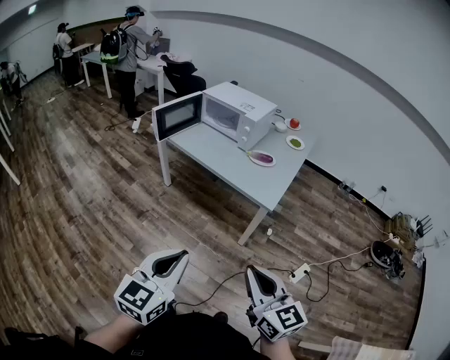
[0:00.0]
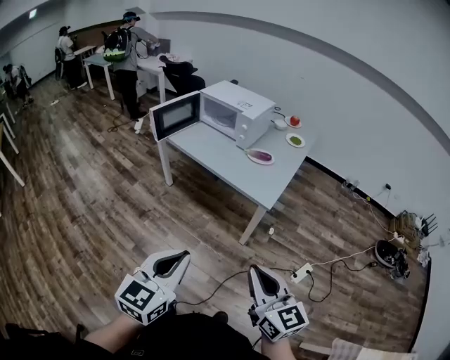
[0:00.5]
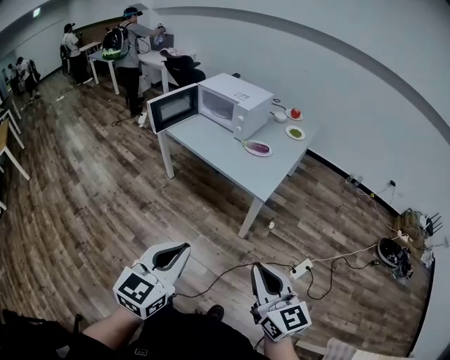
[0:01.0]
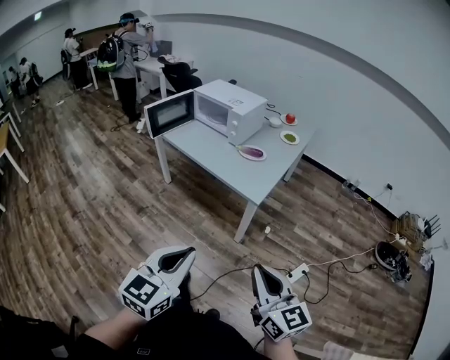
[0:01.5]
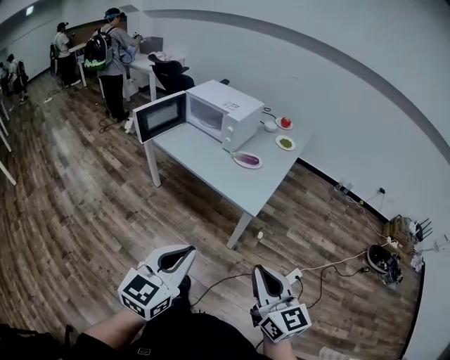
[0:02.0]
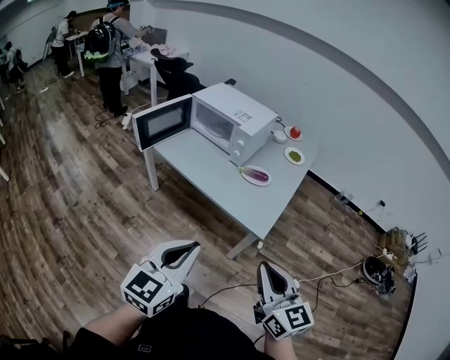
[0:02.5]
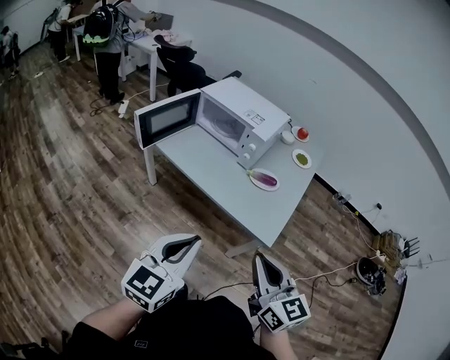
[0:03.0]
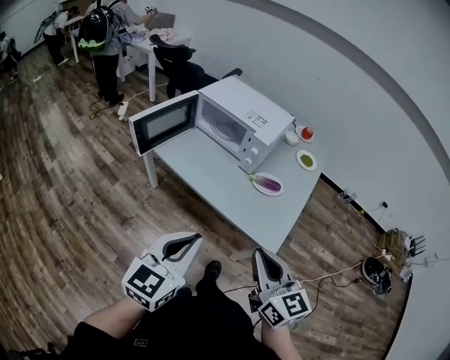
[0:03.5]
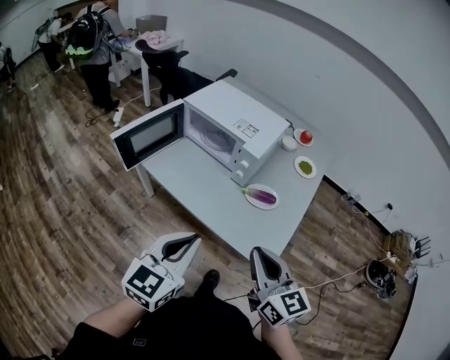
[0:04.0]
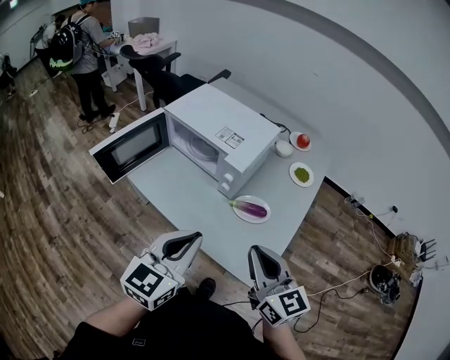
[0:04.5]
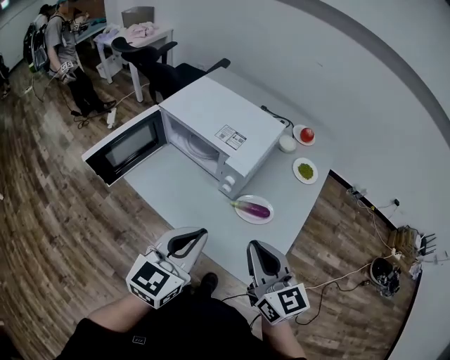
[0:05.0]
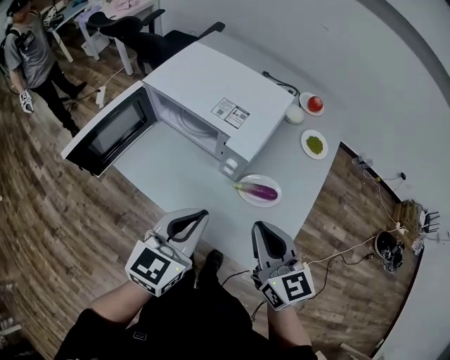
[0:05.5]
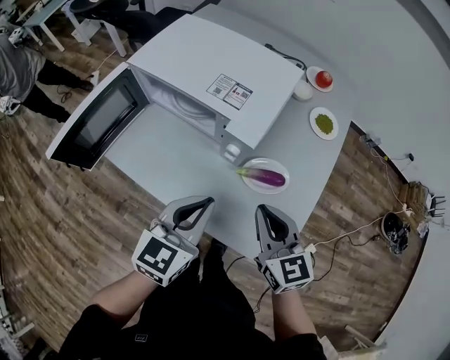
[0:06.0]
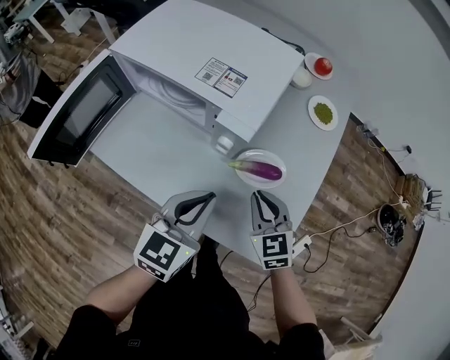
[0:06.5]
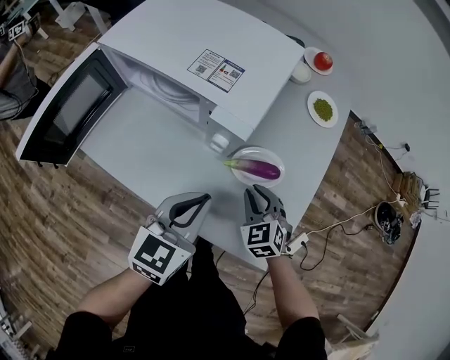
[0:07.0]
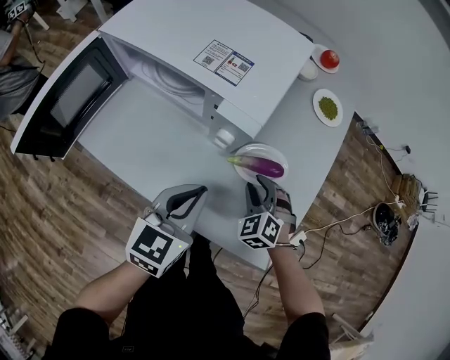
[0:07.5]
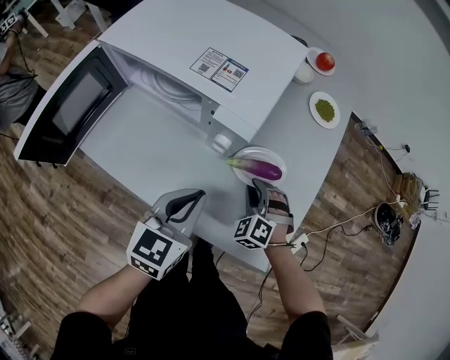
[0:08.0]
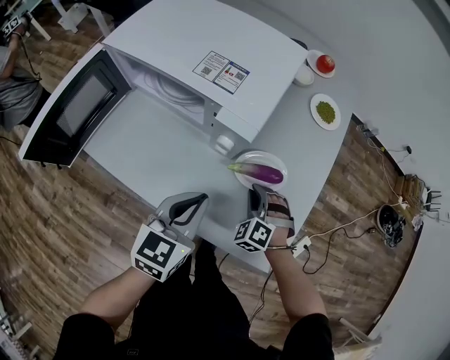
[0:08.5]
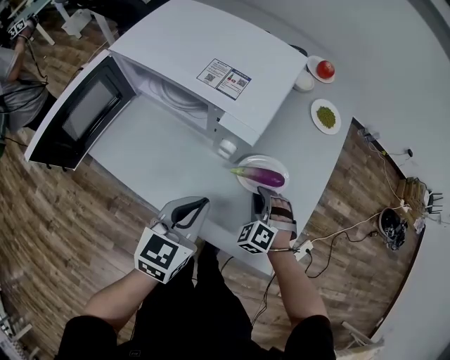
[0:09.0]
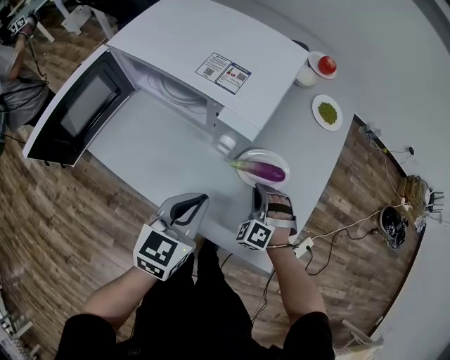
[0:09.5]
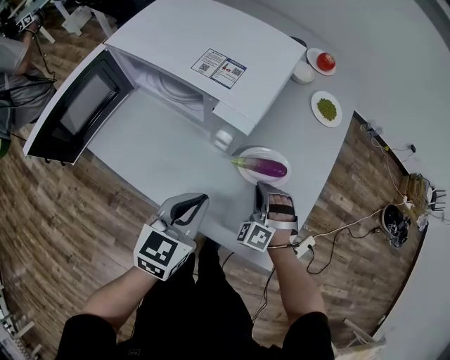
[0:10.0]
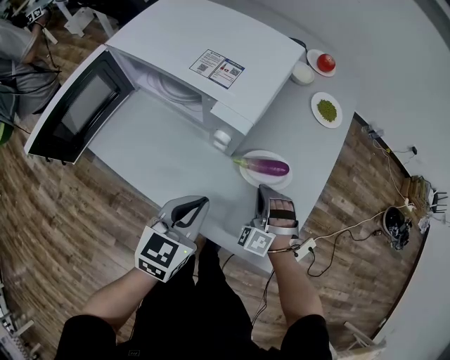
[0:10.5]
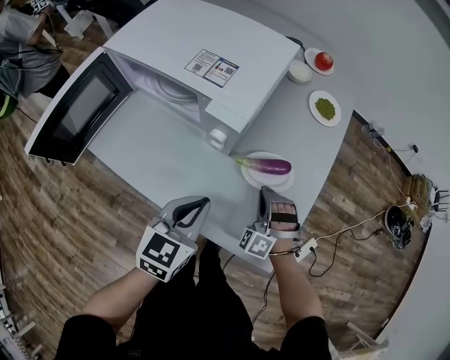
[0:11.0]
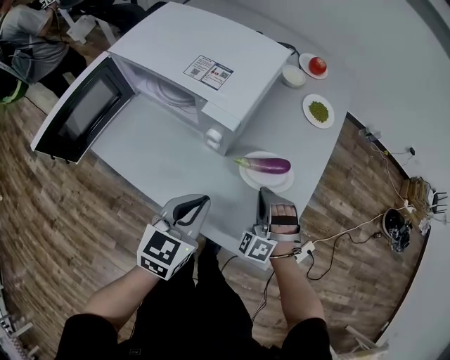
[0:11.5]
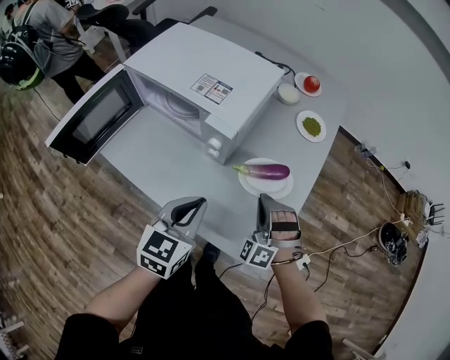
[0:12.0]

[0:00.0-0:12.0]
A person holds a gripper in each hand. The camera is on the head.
0:00.0 to 0:02.0: Both grippers move to the right and forward, approximately 15 cm.
0:02.0 to 0:04.0: Both grippers move forward, about 35 cm.
0:04.0 to 0:06.0: The two grippers go about 25 cm forward and downward.
0:06.0 to 0:08.0: The left gripper moves downward, about 10 cm, while the right gripper is displaced downward by approximately 20 cm, and rotates around the line of its fingers by approximately 50 degrees, counterclockwise from behind.
0:08.0 to 0:10.0: The grippers make only small movements.
0:10.0 to 0:12.0: The right gripper travels upward by about 10 cm. The left gripper goes some 5 cm upward.

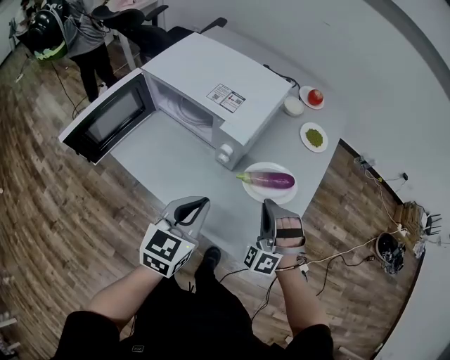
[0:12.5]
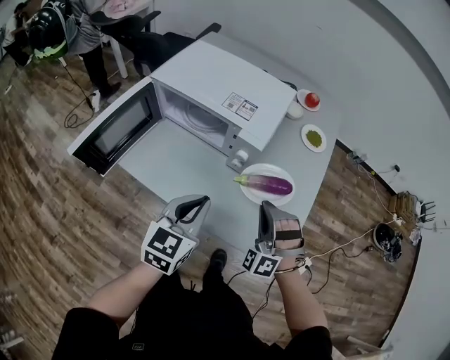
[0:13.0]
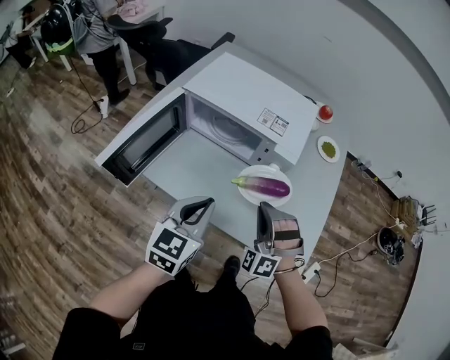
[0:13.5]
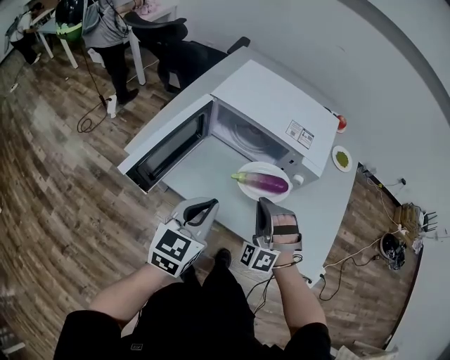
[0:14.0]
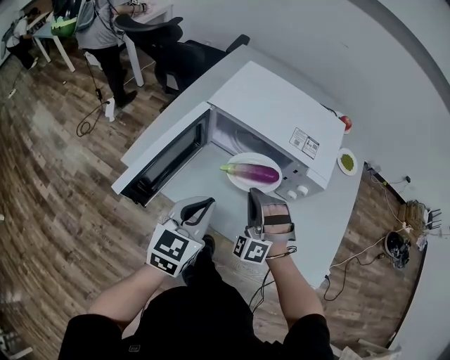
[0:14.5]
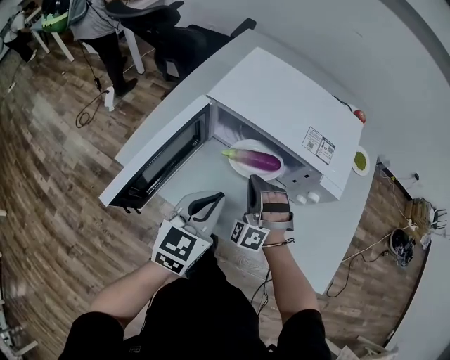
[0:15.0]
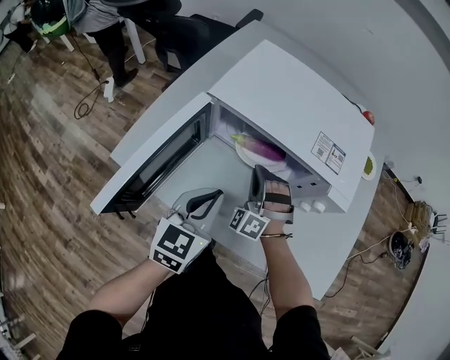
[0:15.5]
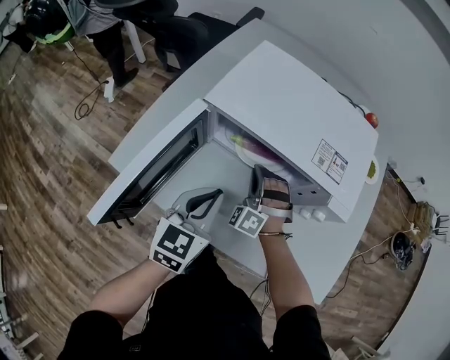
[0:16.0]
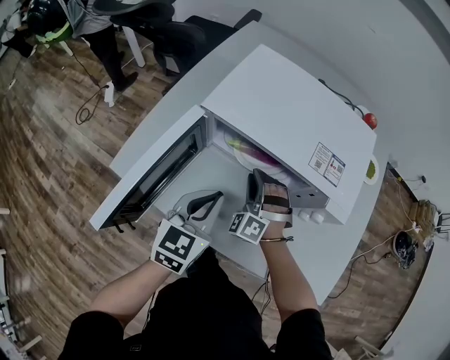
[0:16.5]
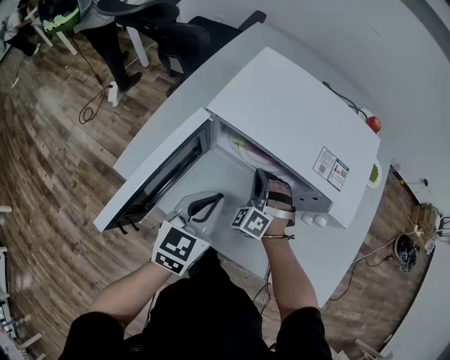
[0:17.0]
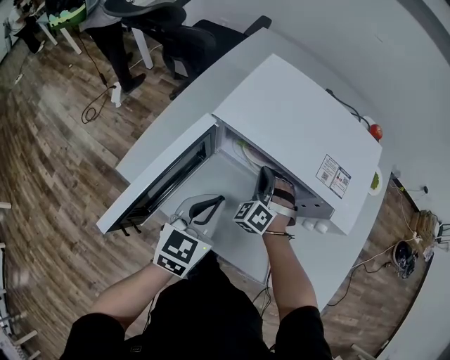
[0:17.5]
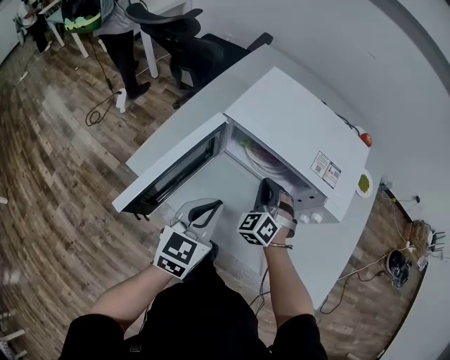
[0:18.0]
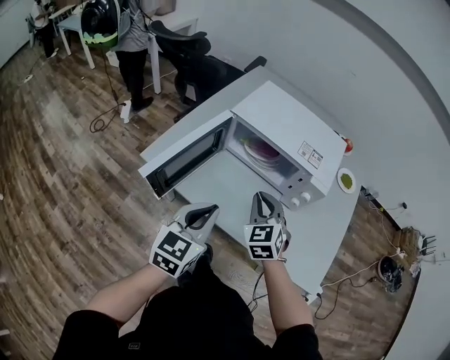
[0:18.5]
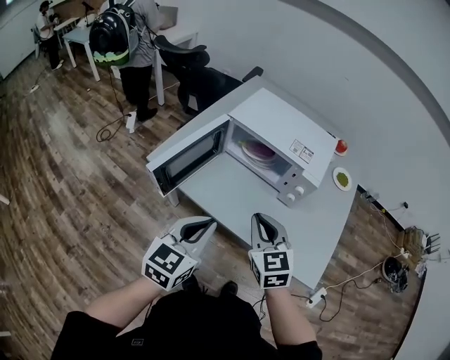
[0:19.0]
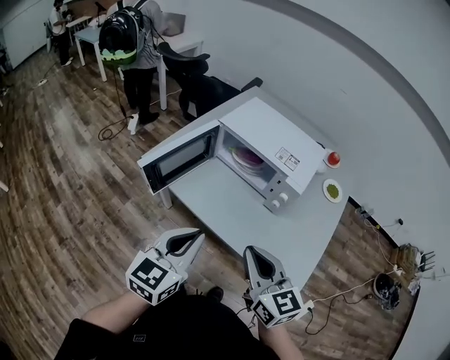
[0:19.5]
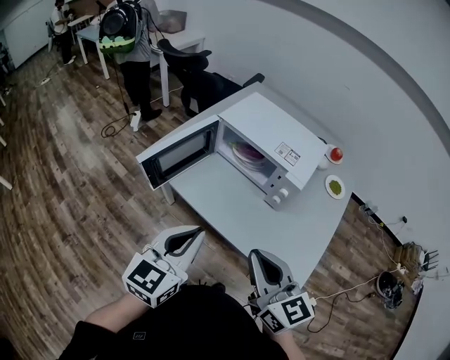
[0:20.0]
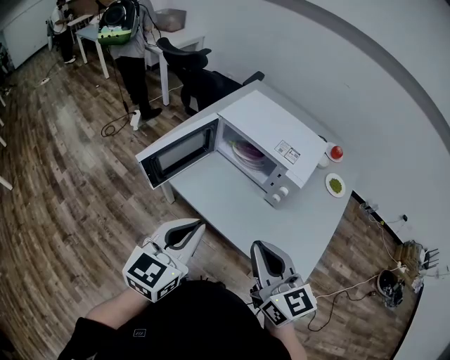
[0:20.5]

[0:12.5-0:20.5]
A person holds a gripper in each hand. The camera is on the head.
0:12.5 to 0:14.5: Both grippers travel together to the left, some 30 cm.
0:14.5 to 0:16.5: Both grippers move forward and downward, about 15 cm. The right gripper opens.
0:16.5 to 0:18.5: Both grippers move backward and upward, some 20 cm. The right gripper changes its angle by some 40 degrees, and closes its fingers.
0:18.5 to 0:20.5: The right gripper heads backward and upward, covering about 25 cm, and rotates approximately 50 degrees. Meanwhile the left gripper heads backward, upward and to the right, covering approximately 15 cm.

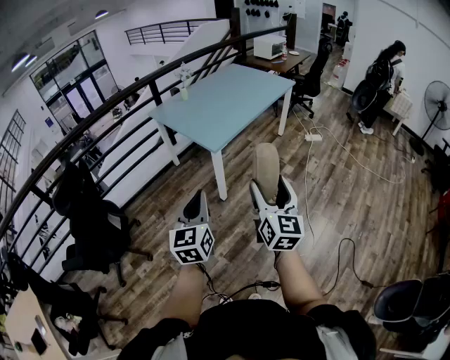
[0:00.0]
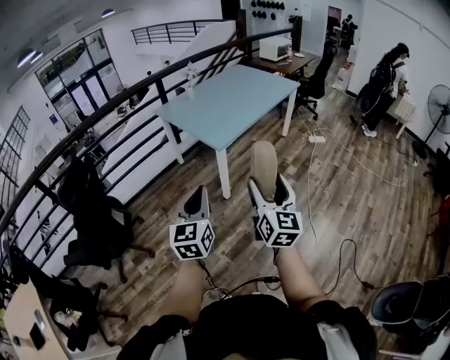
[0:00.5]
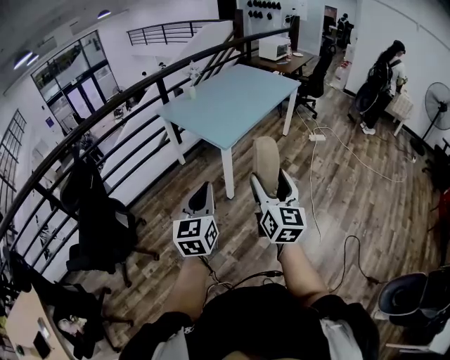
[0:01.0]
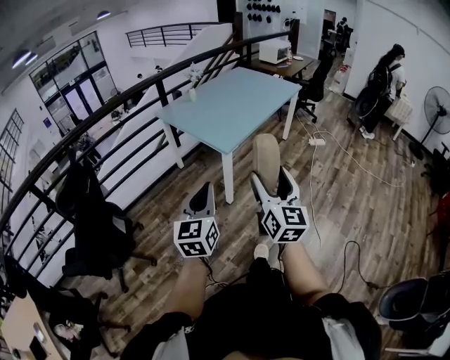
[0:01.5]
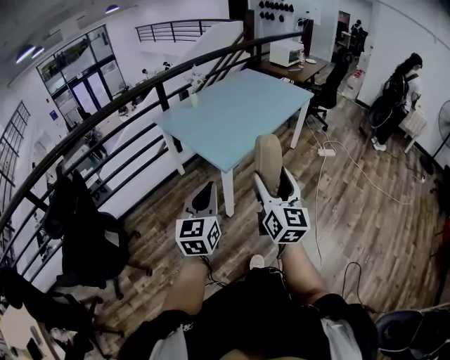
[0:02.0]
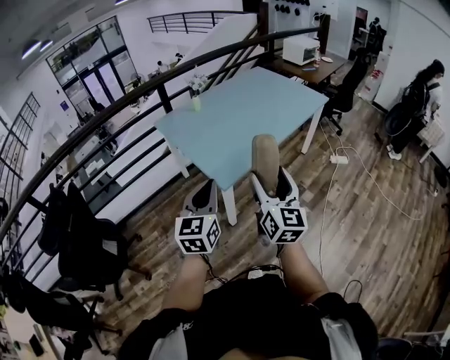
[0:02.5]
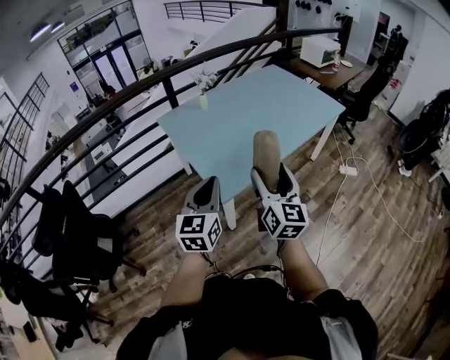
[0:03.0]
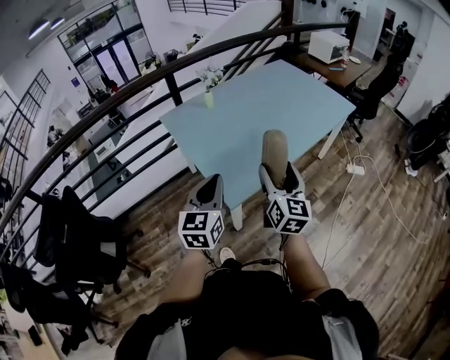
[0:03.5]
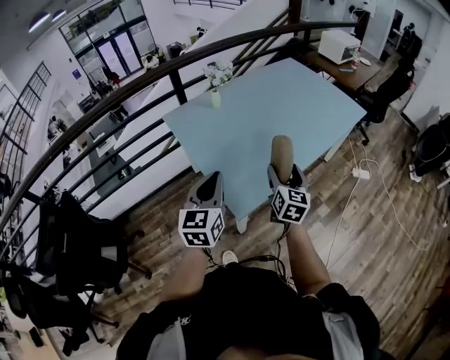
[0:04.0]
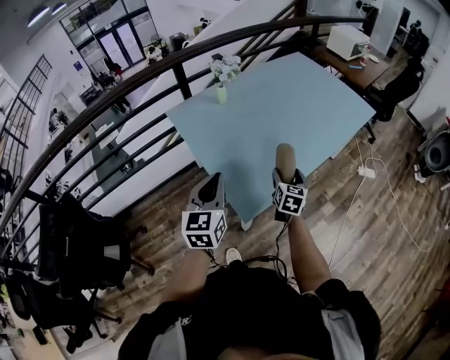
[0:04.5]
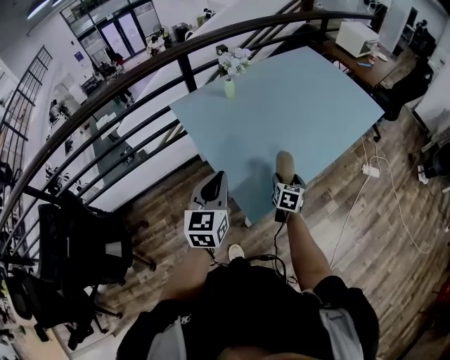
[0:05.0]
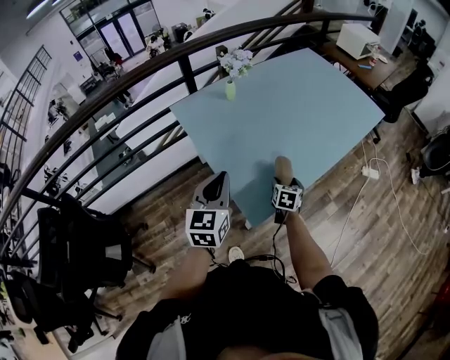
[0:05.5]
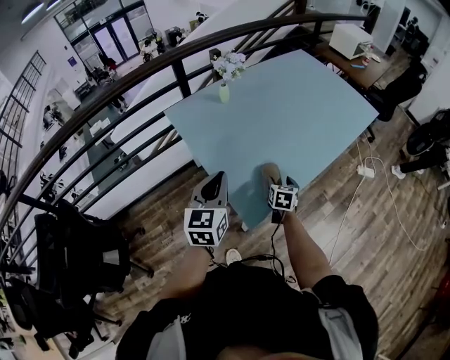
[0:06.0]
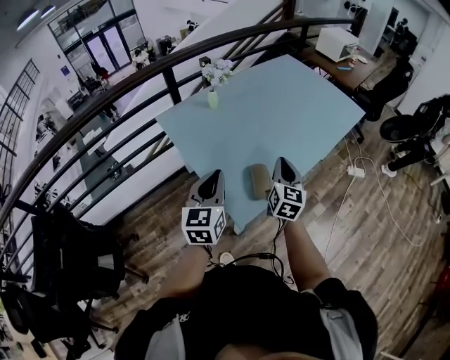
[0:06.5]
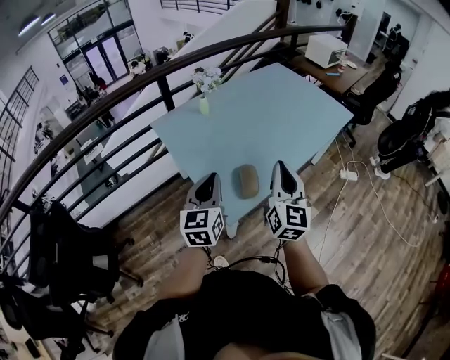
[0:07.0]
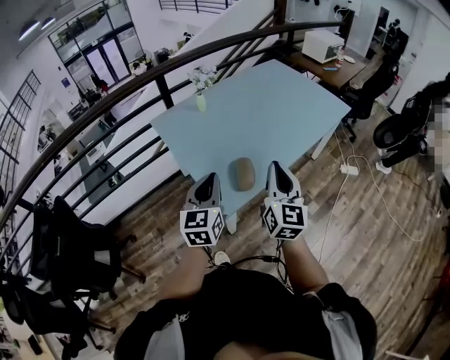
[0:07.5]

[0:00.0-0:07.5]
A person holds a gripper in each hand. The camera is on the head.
0:00.0 to 0:02.0: Both grippers move forward, some 20 cm.
0:02.0 to 0:04.0: The grippers both shift forward by some 40 cm. The right gripper turns by approximately 20 degrees.
0:04.0 to 0:05.5: The left gripper heads forward and to the left, covering roughly 10 cm; the right gripper moves downward, some 20 cm, and swivels some 30 degrees.
0:05.5 to 0:07.5: The right gripper moves upward and backward, roughly 35 cm, points its fingers some 50 degrees further upward, and closes; the left gripper is displaced to the right and backward by about 10 cm.
